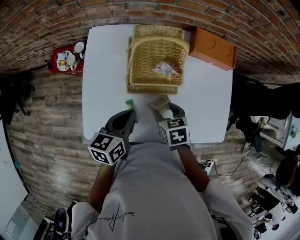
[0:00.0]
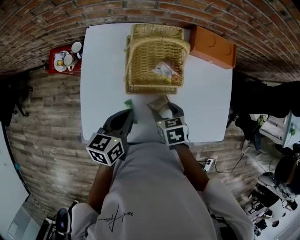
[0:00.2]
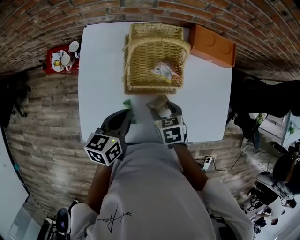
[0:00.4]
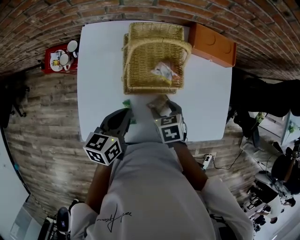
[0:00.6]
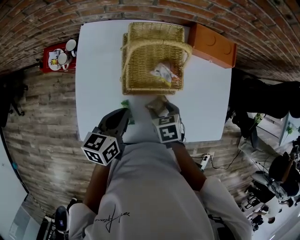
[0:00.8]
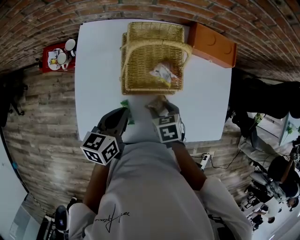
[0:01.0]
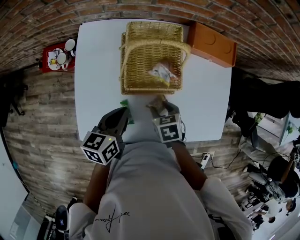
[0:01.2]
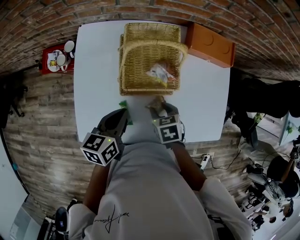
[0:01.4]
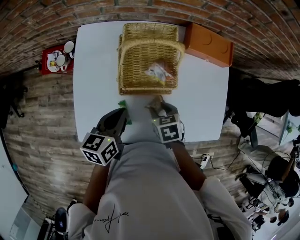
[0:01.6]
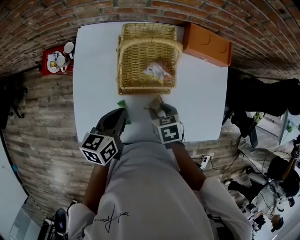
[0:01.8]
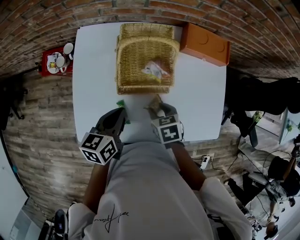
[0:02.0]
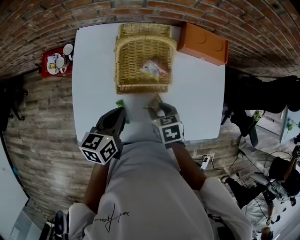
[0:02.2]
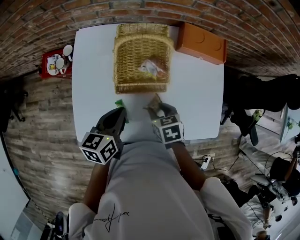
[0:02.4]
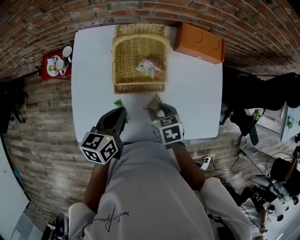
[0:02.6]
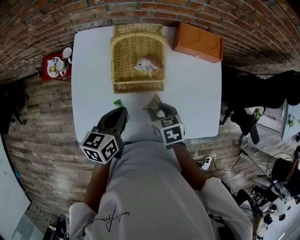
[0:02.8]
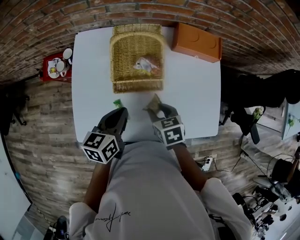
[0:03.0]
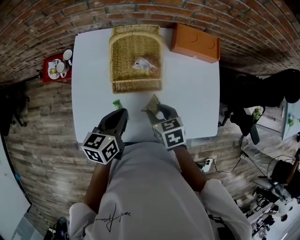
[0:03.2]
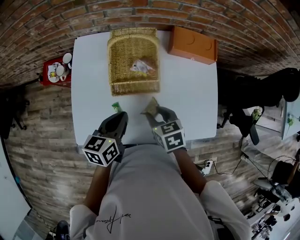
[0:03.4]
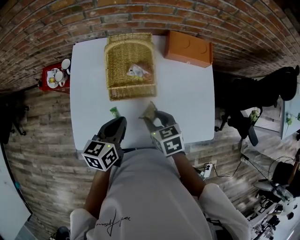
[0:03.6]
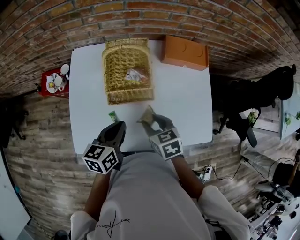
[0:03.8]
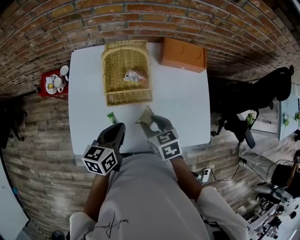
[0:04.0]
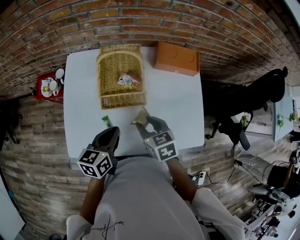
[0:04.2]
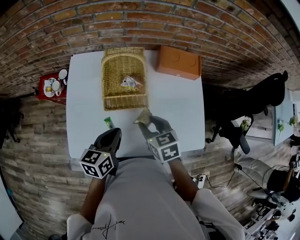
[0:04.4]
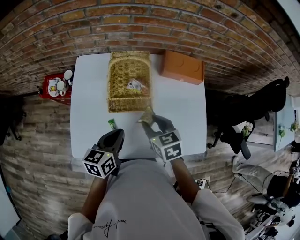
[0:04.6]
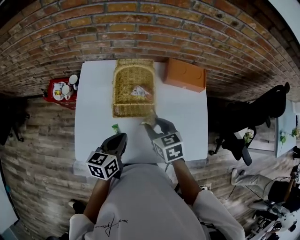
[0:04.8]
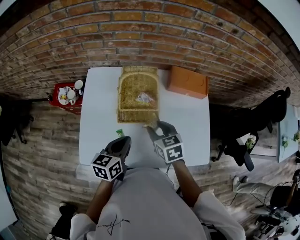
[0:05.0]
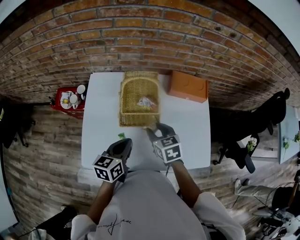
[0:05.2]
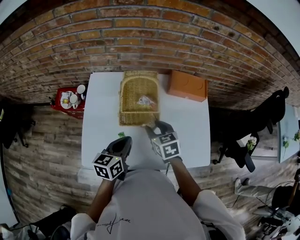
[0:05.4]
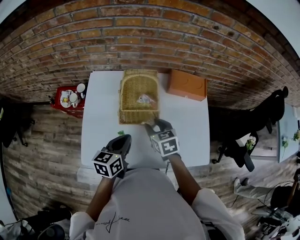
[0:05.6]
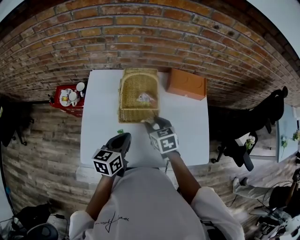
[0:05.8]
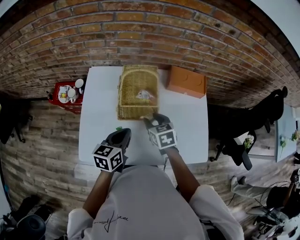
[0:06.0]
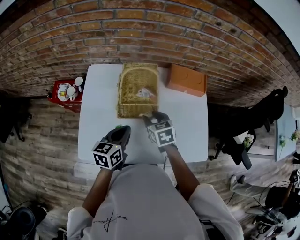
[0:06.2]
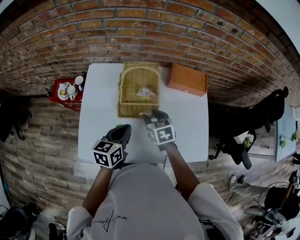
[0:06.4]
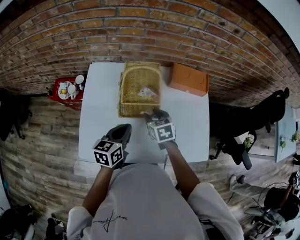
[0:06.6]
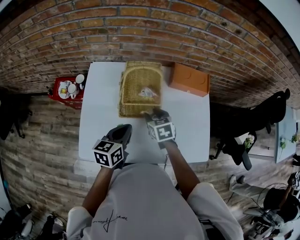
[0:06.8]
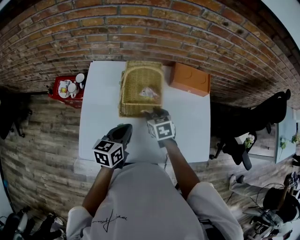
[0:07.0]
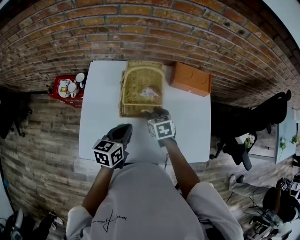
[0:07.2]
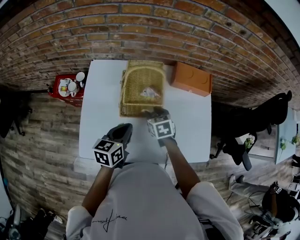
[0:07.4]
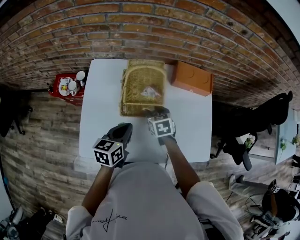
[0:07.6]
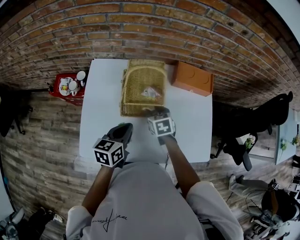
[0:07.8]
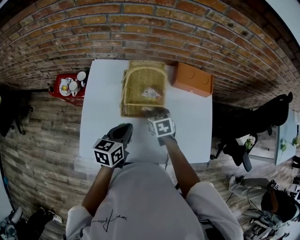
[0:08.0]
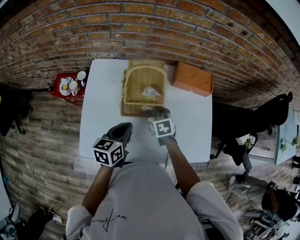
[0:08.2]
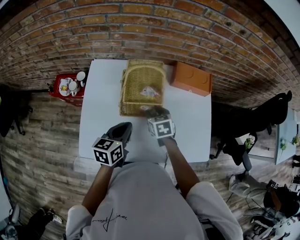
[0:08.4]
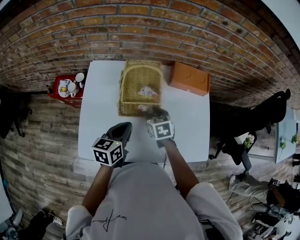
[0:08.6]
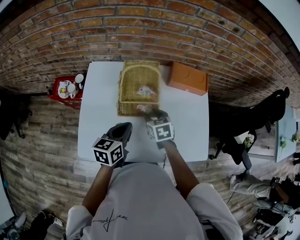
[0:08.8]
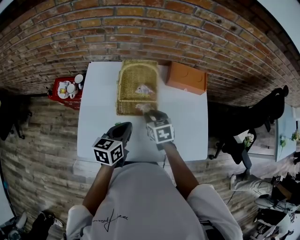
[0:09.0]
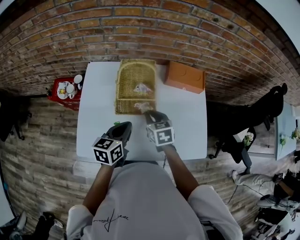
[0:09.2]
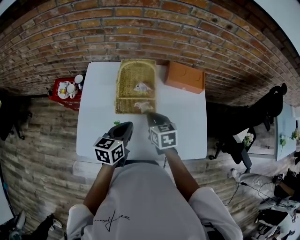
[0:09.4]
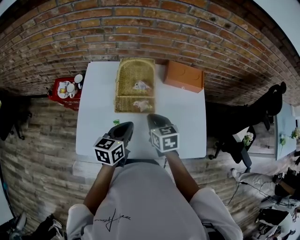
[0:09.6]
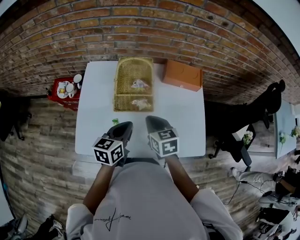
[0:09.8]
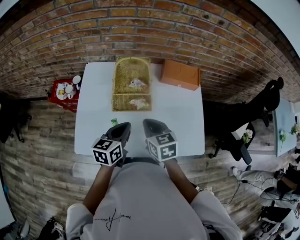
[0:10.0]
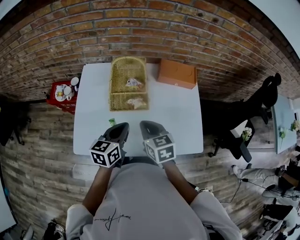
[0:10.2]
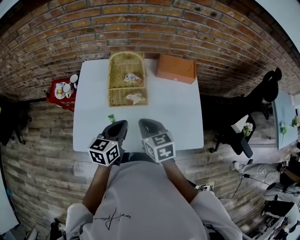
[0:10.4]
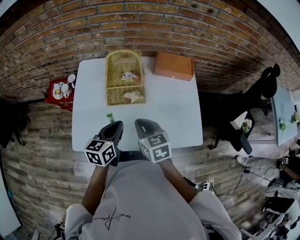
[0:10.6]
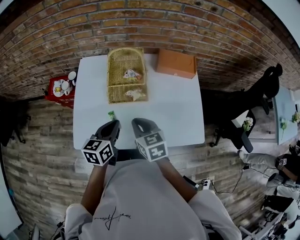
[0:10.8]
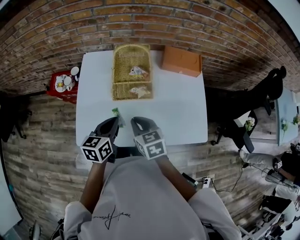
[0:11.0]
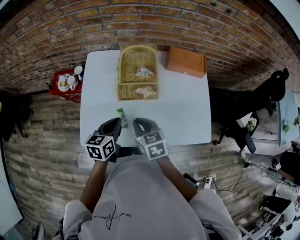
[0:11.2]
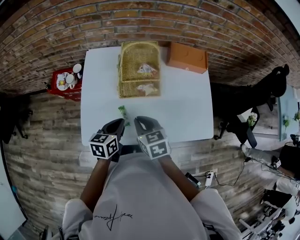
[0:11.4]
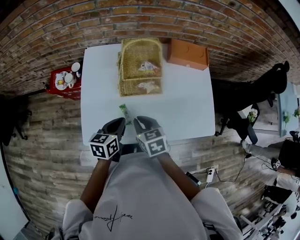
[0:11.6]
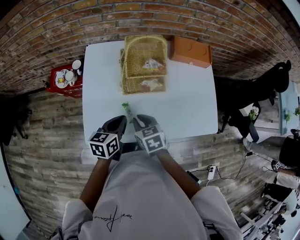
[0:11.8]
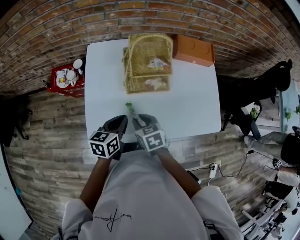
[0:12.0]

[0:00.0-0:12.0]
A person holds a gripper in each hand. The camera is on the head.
0:00.0 to 0:03.0: The grippers move only a little.
0:03.0 to 0:04.4: The right gripper moves upward, some 5 cm.
0:04.4 to 0:06.0: The right gripper heads forward, covering about 5 cm.
0:06.0 to 0:07.6: The right gripper ends up approximately 5 cm from where it was.
0:07.6 to 0:09.0: The grippers make only small movements.
0:09.0 to 0:10.4: The right gripper is displaced backward and upward by roughly 15 cm, and closes its fingers; the left gripper ends up roughly 5 cm from where it was.
0:10.4 to 0:12.0: Both grippers move to the left and downward, approximately 15 cm.

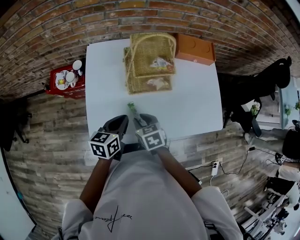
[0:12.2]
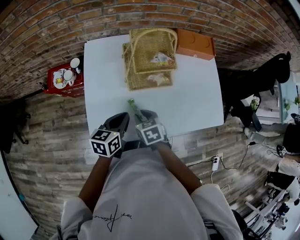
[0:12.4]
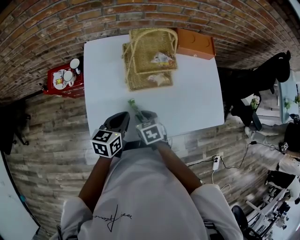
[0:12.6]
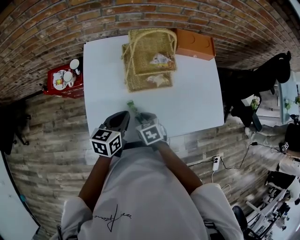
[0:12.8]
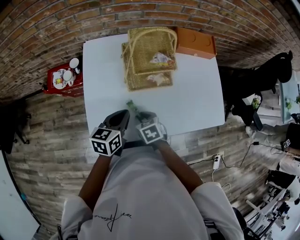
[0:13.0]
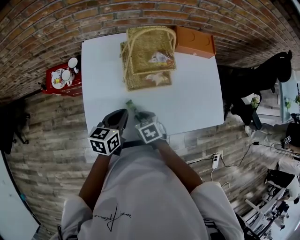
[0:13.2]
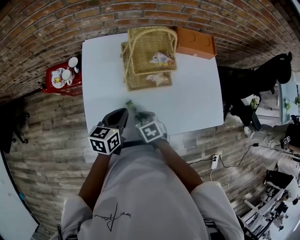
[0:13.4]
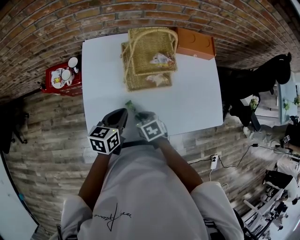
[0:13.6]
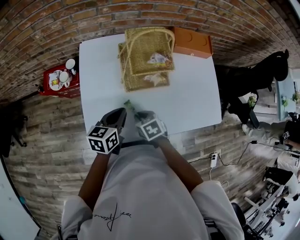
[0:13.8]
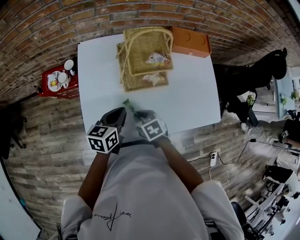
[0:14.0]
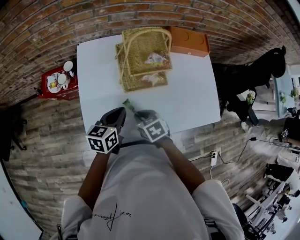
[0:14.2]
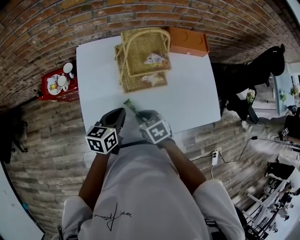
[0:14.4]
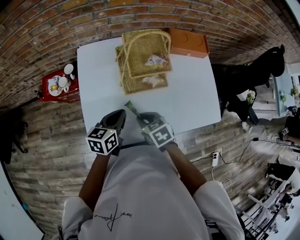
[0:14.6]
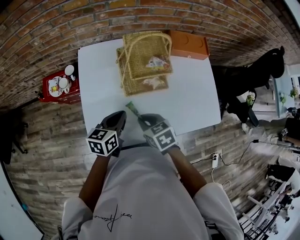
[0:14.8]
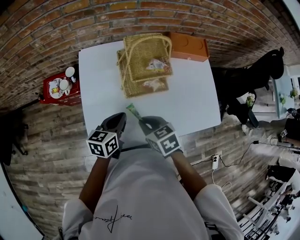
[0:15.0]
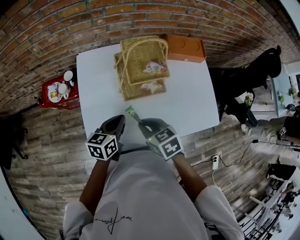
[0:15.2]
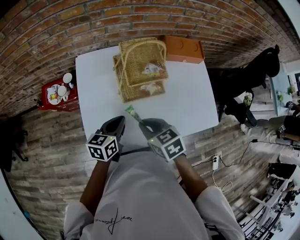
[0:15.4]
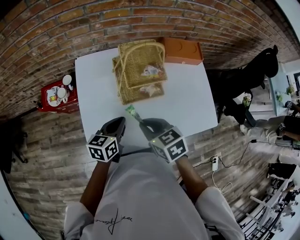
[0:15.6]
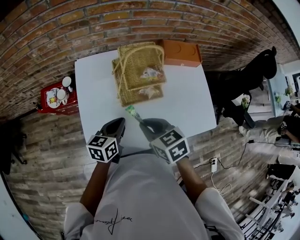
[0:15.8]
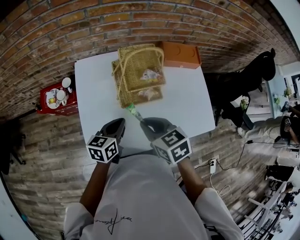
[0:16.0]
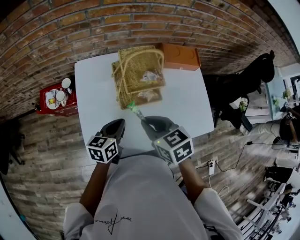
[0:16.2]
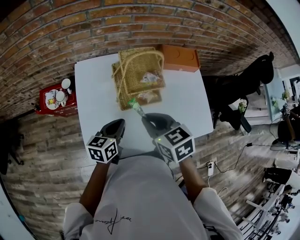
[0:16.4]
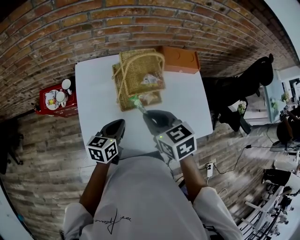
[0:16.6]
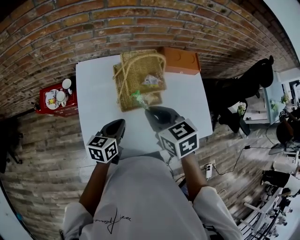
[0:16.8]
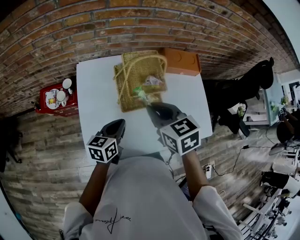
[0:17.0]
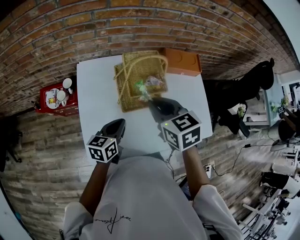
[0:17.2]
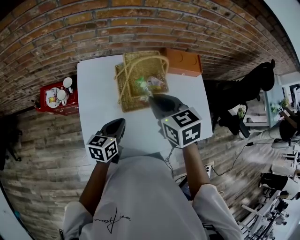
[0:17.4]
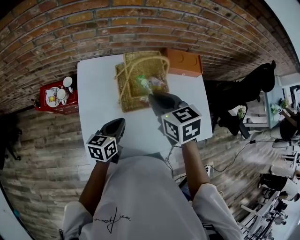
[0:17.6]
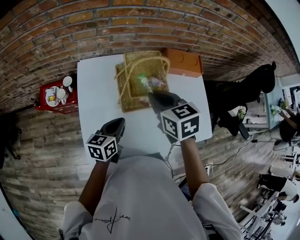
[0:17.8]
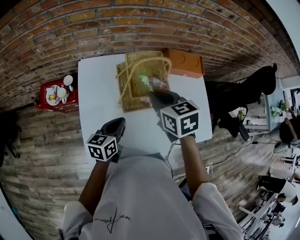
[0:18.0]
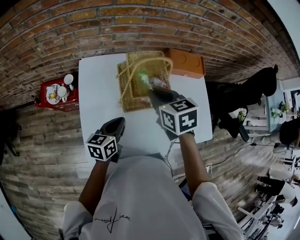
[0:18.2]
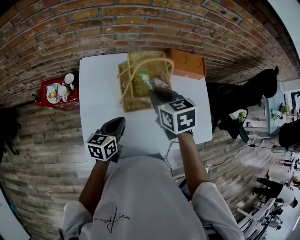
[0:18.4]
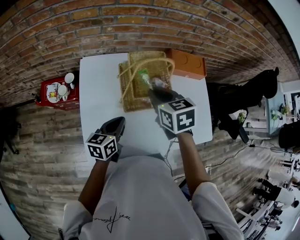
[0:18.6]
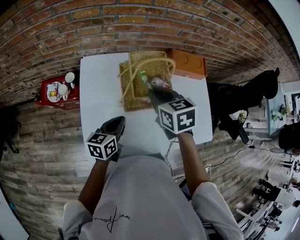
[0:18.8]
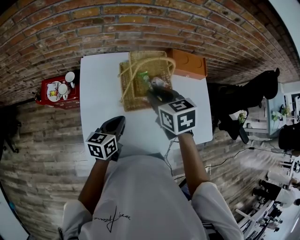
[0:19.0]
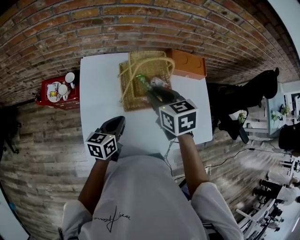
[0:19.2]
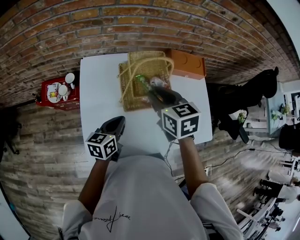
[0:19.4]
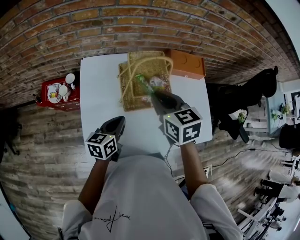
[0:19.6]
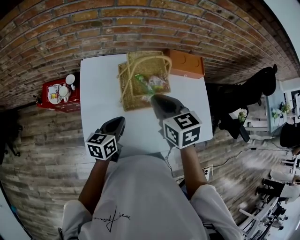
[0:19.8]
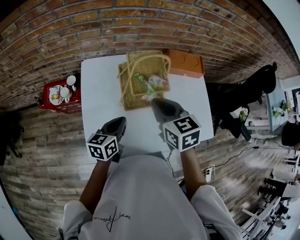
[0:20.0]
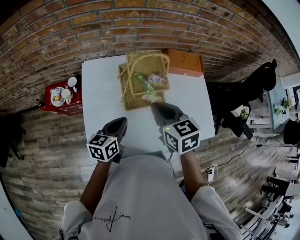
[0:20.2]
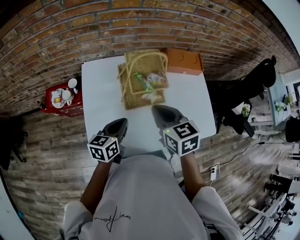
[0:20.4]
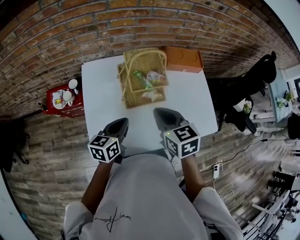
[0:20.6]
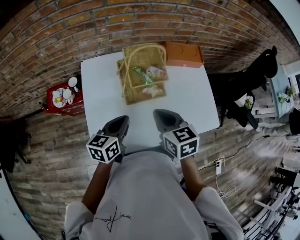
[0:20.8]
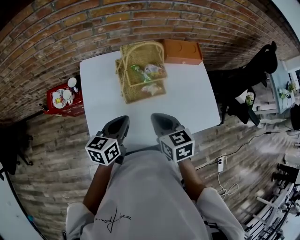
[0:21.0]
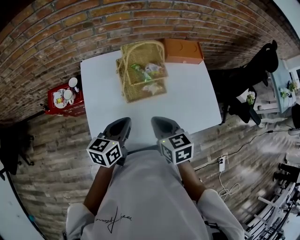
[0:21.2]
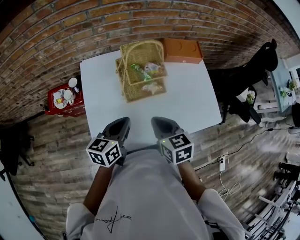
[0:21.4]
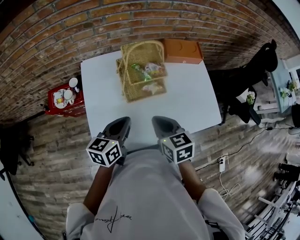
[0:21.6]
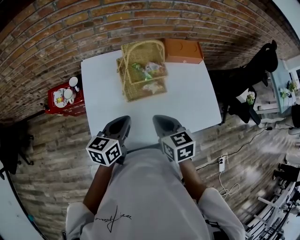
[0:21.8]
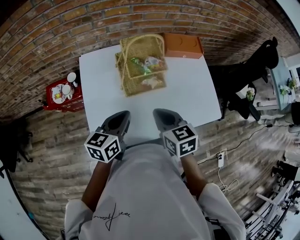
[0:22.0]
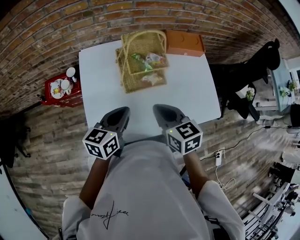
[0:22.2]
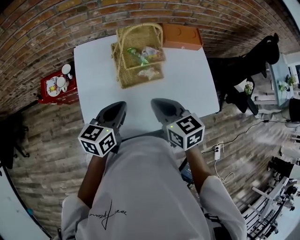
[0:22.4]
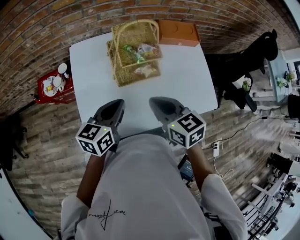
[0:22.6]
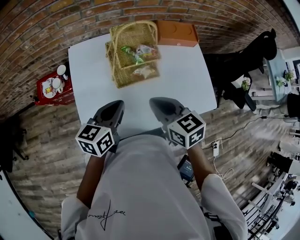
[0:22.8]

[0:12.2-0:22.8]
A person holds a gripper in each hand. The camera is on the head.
0:12.2 to 0:13.8: The grippers move only a little.
0:13.8 to 0:15.2: The right gripper heads upward, covering some 10 cm.
0:15.2 to 0:16.8: The right gripper moves upward and forward, approximately 15 cm.
0:16.8 to 0:18.2: The right gripper moves forward, about 10 cm.
0:18.2 to 0:19.8: The grippers make only small movements.
0:19.8 to 0:21.2: The left gripper shifts by about 5 cm, while the right gripper travels backward and downward by roughly 15 cm.
0:21.2 to 0:22.8: The grippers stay close to where they were, moving slightly.

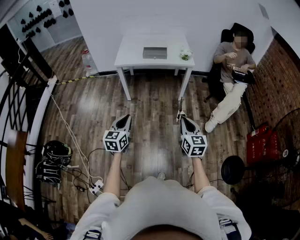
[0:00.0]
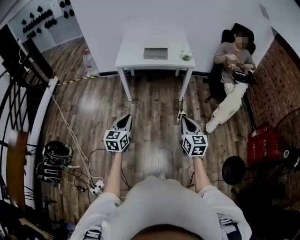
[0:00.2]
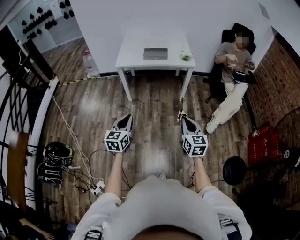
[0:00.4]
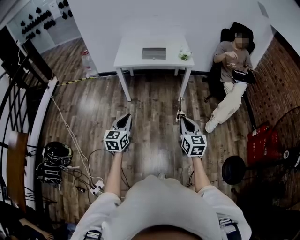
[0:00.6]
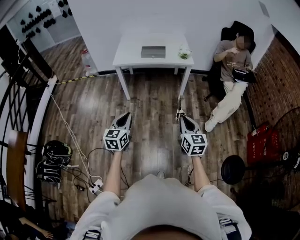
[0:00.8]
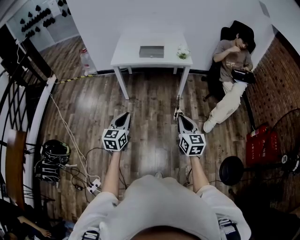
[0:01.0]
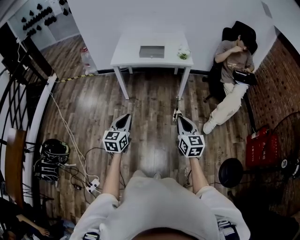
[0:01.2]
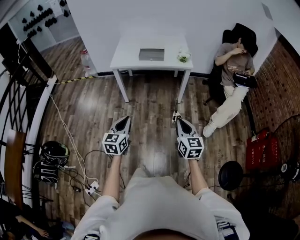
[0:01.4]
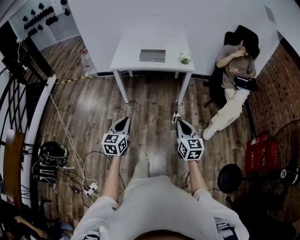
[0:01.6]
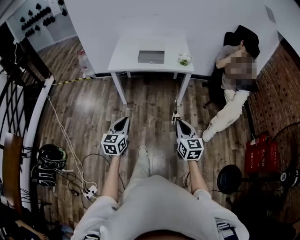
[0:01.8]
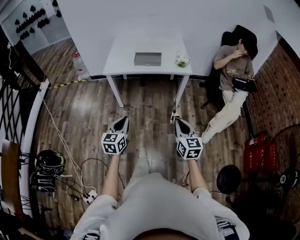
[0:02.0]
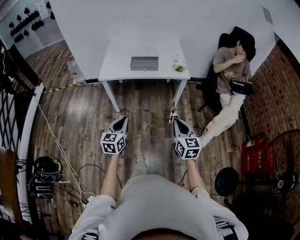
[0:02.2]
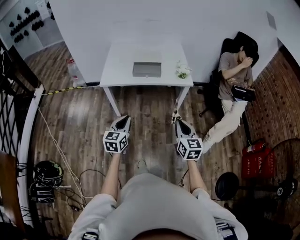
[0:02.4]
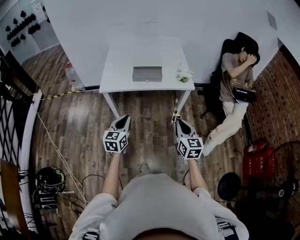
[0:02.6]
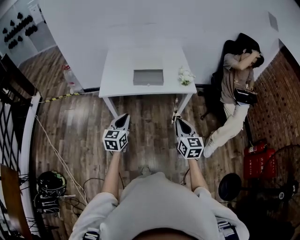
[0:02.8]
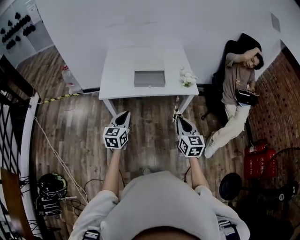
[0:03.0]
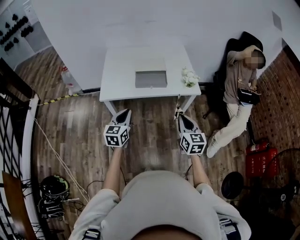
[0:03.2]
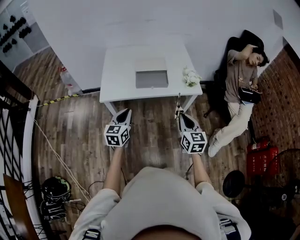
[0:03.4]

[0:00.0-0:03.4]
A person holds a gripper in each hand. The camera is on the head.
0:00.0 to 0:01.6: The right gripper moves forward, about 10 cm. The left gripper goes some 10 cm forward and to the right.
0:01.6 to 0:03.4: The grippers both shift forward by some 40 cm.
